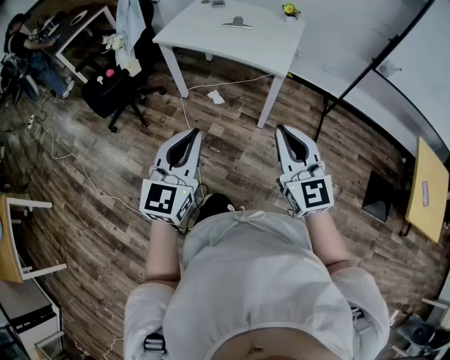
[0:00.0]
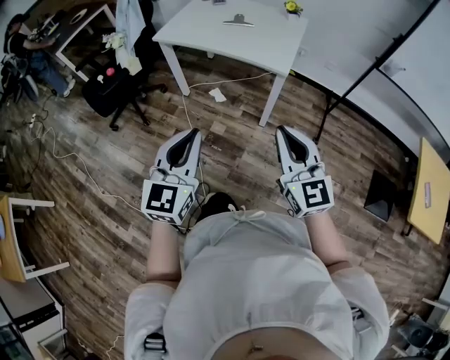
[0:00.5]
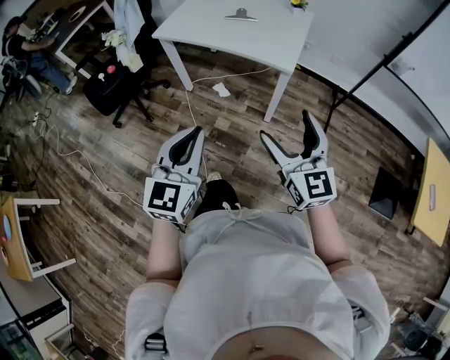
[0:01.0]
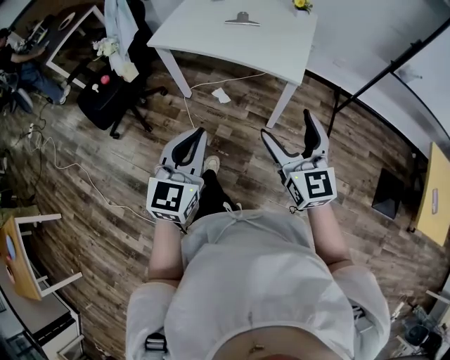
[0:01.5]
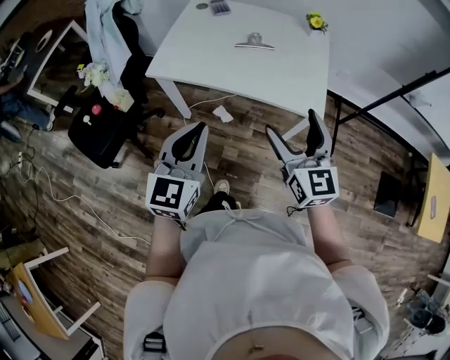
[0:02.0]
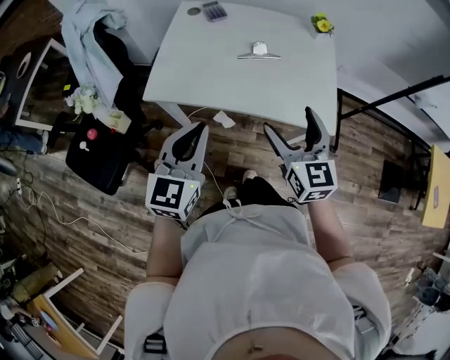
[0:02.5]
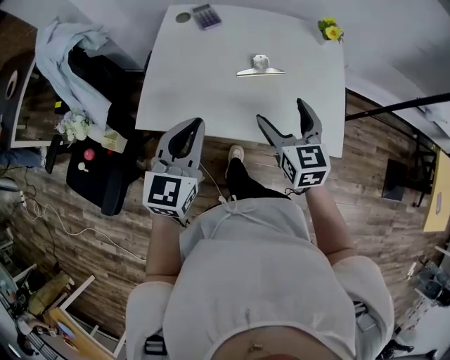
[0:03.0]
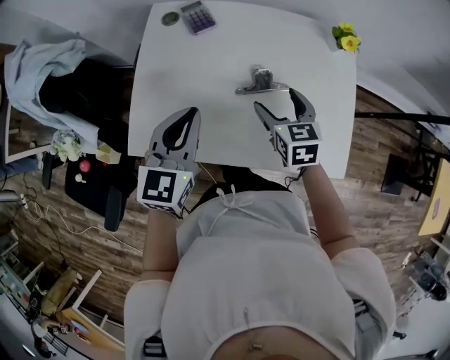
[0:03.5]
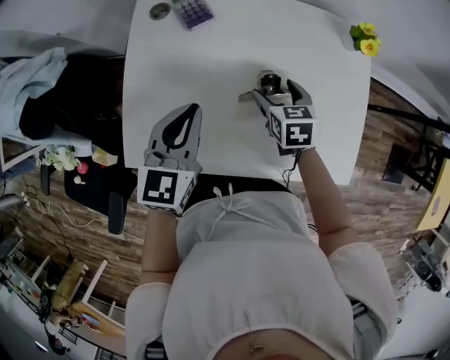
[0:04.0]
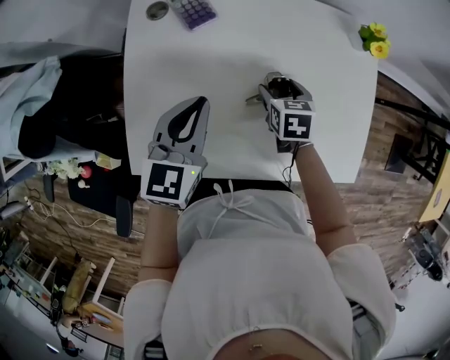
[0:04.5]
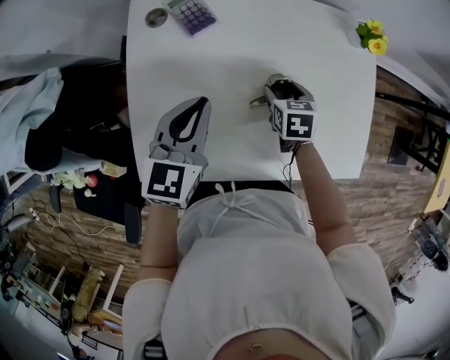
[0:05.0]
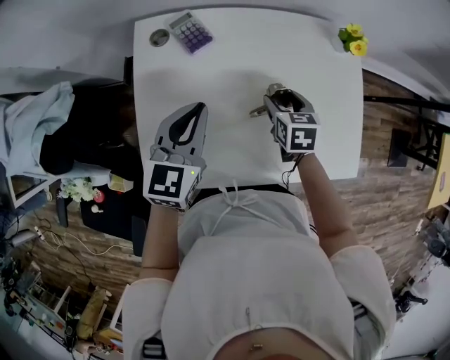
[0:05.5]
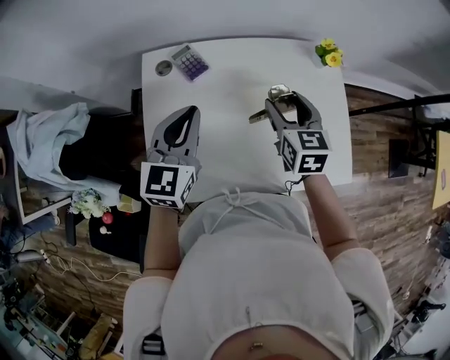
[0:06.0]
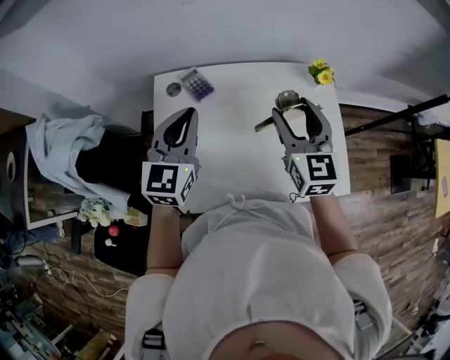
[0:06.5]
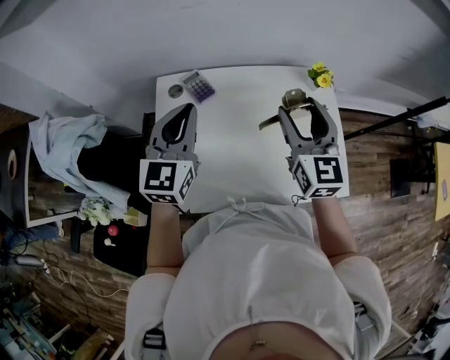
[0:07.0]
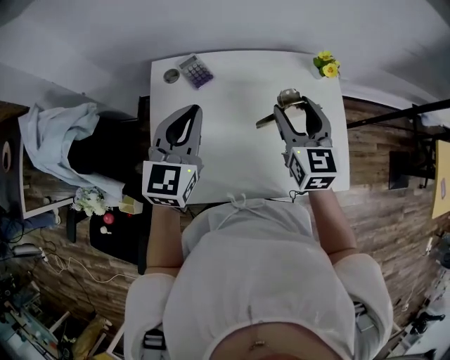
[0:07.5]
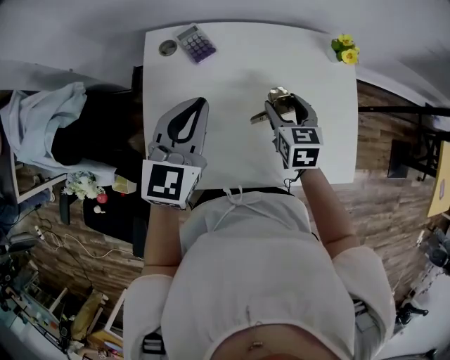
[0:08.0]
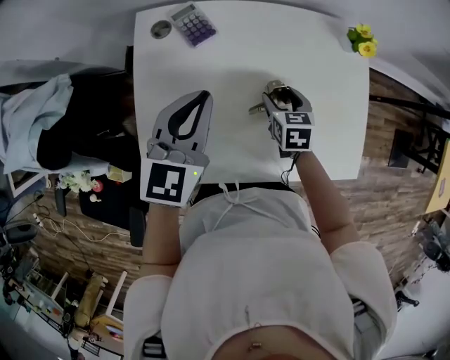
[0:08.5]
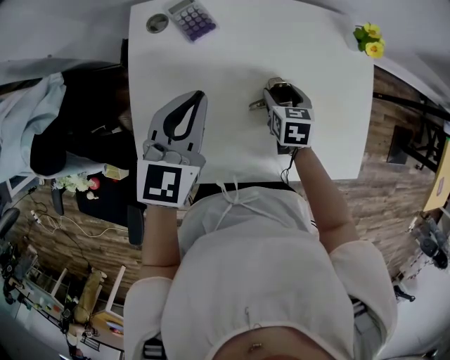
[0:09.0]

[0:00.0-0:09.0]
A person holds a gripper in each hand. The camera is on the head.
0:00.0 to 0:02.0: The two grippers go about 35 cm forward. The right gripper opens.
0:02.0 to 0:04.5: The pair of grippers is taken forward, some 50 cm. The left gripper turns by some 20 degrees, while the right gripper travels downward by about 30 cm, and tips its fingers downward by approximately 50 degrees.
0:04.5 to 0:07.0: The left gripper heads upward, covering some 20 cm, and turns by about 20 degrees. The right gripper heads upward, covering approximately 35 cm, and tilts its fingers roughly 50 degrees upward.
0:07.0 to 0:09.0: The right gripper is displaced downward by some 35 cm, and points its fingers roughly 50 degrees further downward. Meanwhile the left gripper is displaced downward by some 15 cm, and swivels approximately 20 degrees.

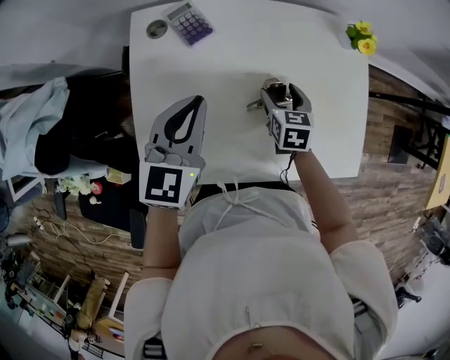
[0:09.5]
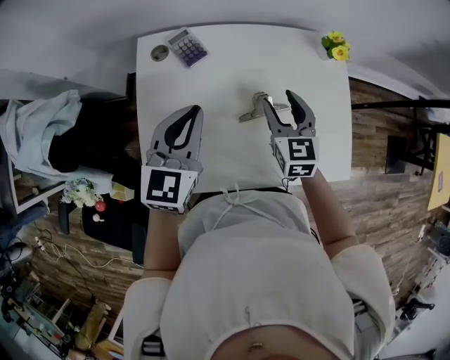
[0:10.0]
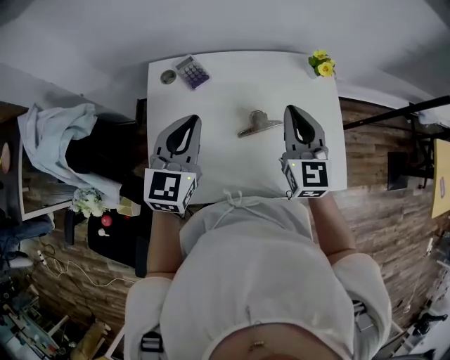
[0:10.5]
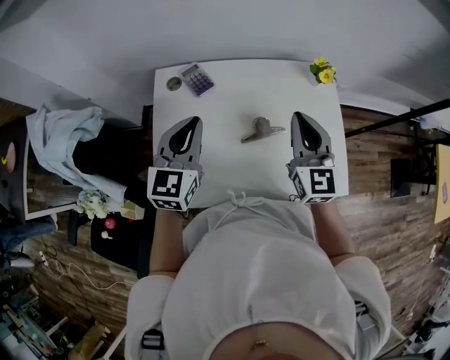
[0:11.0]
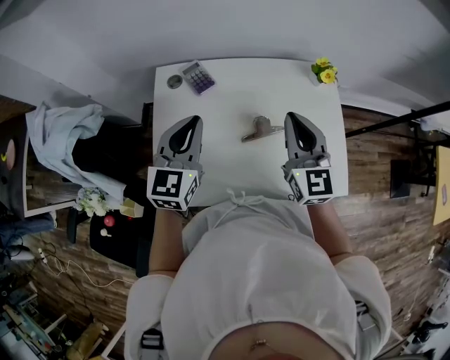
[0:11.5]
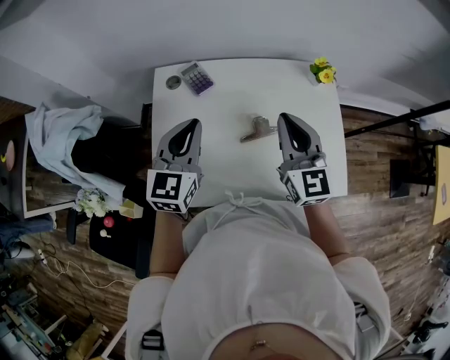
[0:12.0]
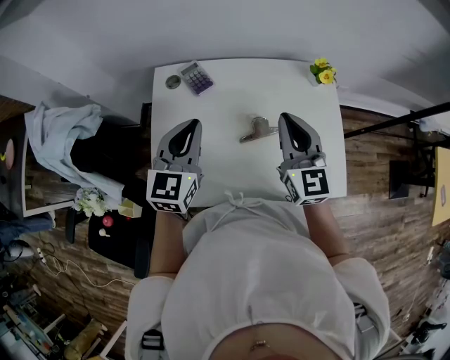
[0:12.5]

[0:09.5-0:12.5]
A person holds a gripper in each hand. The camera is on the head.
0:09.5 to 0:11.0: The right gripper moves upward, approximately 30 cm, tips its fingers upward by approximately 40 degrees, and closes its fingers. Meanwhile the left gripper goes approximately 10 cm upward.
0:11.0 to 0:12.5: The grippers make only small movements.

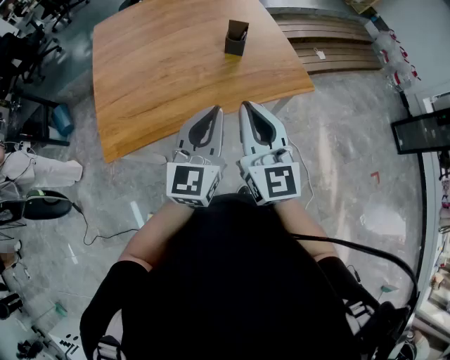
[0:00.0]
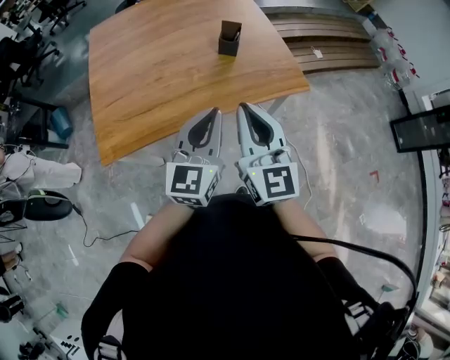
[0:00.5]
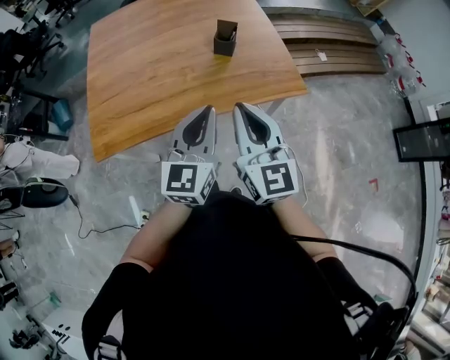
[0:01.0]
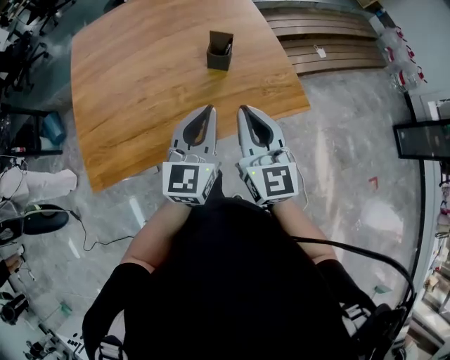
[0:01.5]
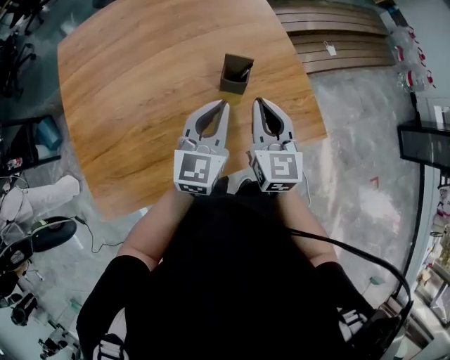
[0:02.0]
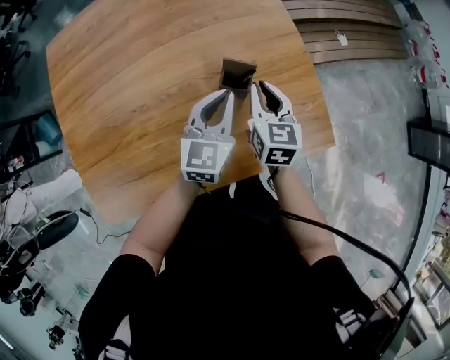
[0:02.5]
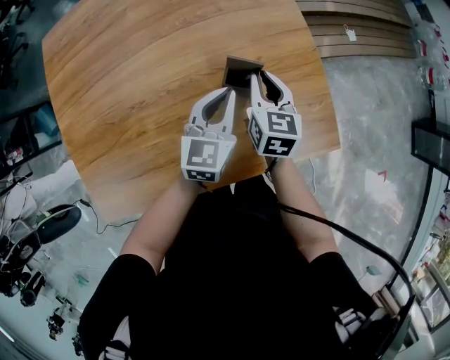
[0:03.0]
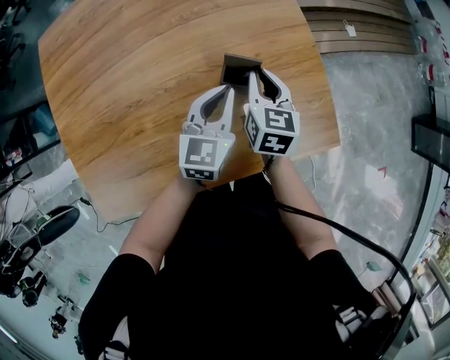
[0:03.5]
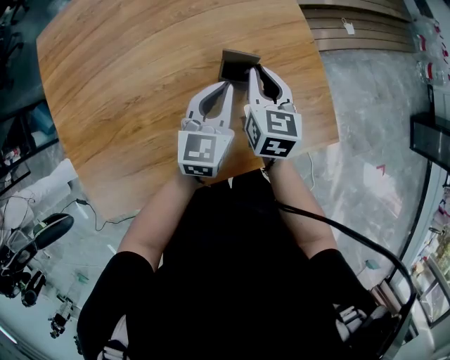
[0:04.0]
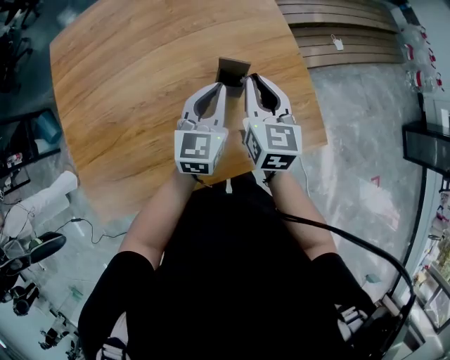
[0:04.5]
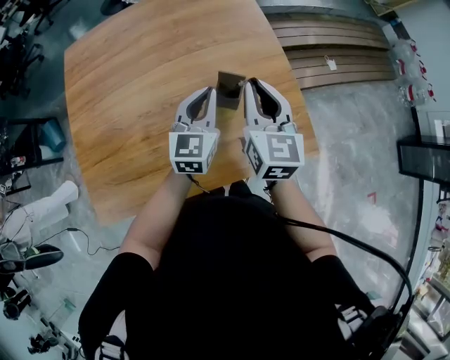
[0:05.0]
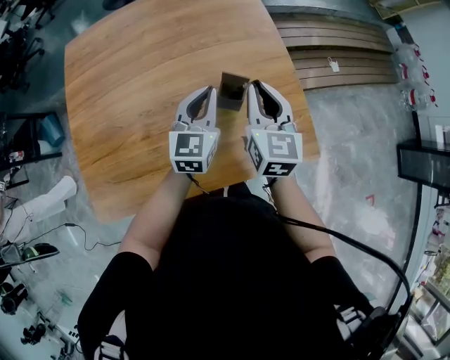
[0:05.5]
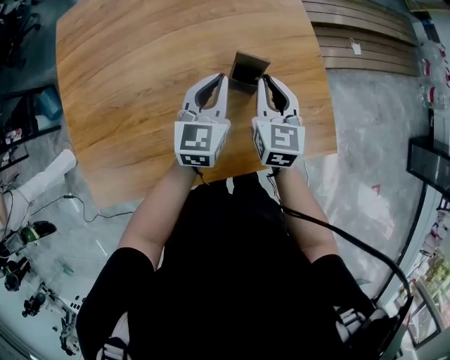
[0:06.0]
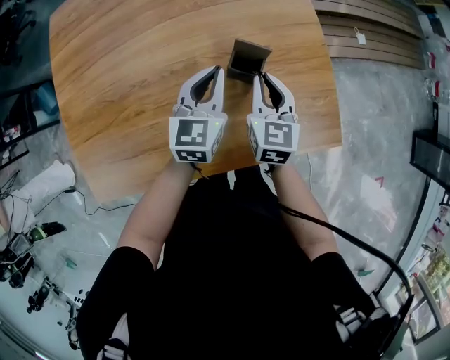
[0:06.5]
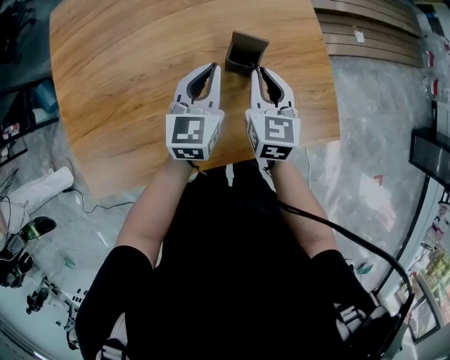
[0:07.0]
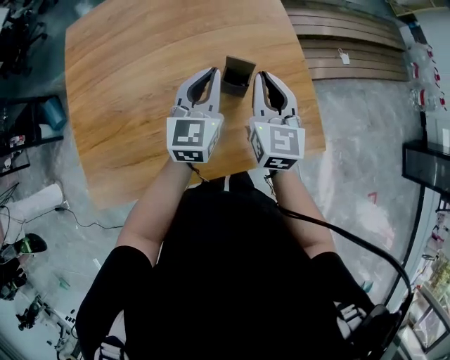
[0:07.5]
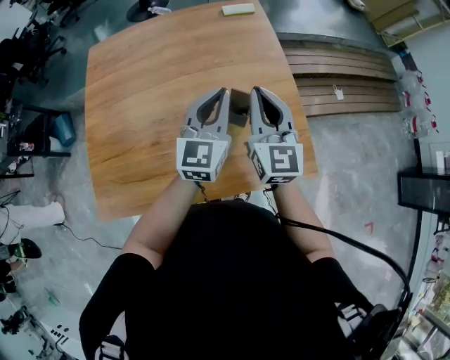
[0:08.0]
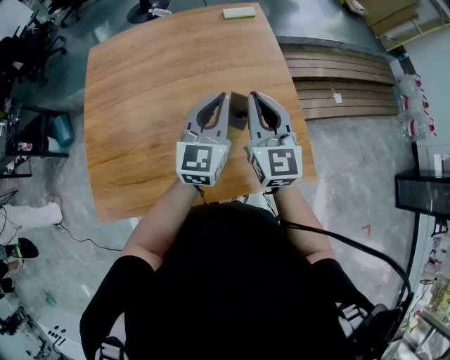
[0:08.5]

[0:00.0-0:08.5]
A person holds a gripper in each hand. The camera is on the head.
0:00.0 to 0:02.0: Both grippers move forward, some 35 cm. The right gripper turns by roughly 20 degrees.
0:02.0 to 0:04.0: The right gripper goes some 15 cm forward and downward. Meanwhile the left gripper heads downward and forward, covering roughly 15 cm.
0:04.0 to 0:06.5: The right gripper goes upward and returns, roughly 20 cm each way. Meanwhile the left gripper moves roughly 10 cm upward and comes back.
0:06.5 to 0:08.5: The two grippers go approximately 20 cm upward. The right gripper rotates roughly 30 degrees.

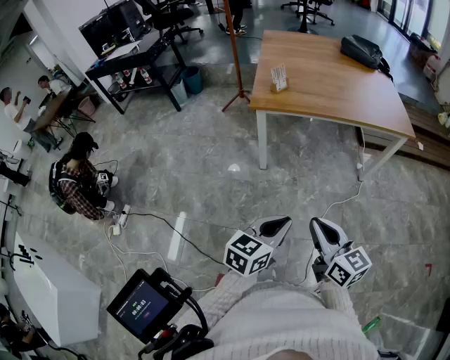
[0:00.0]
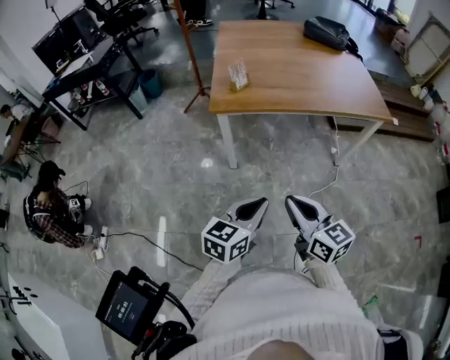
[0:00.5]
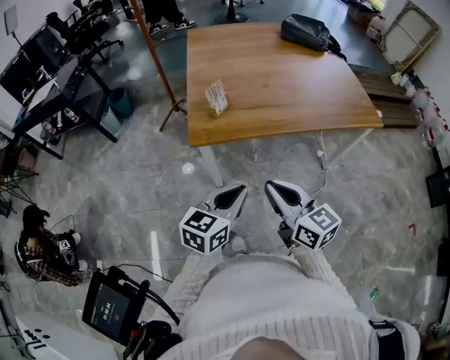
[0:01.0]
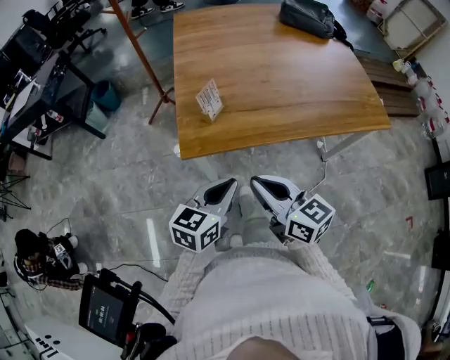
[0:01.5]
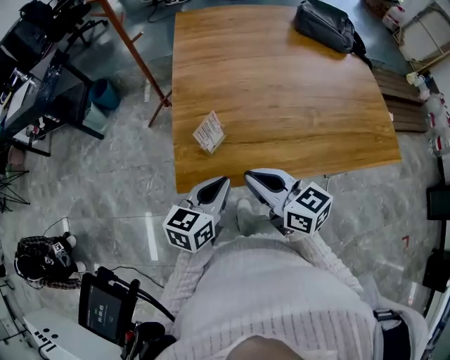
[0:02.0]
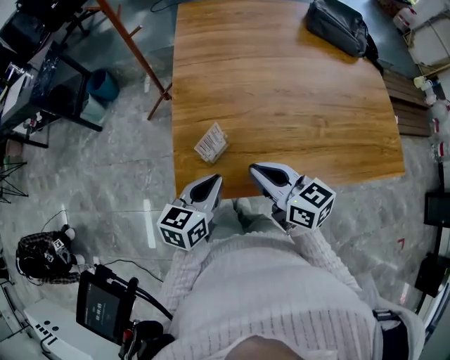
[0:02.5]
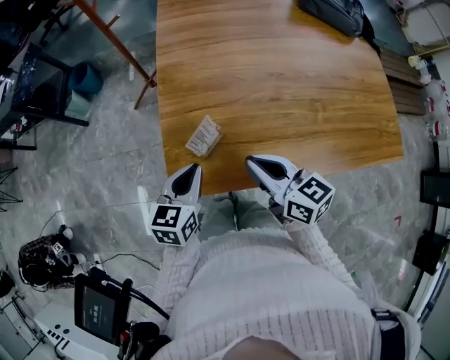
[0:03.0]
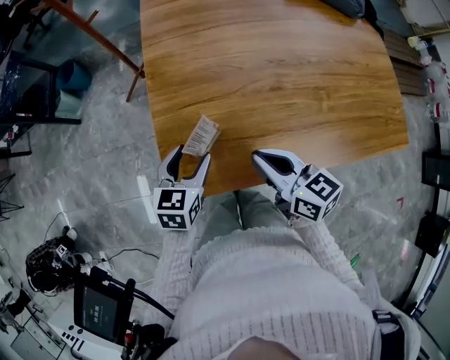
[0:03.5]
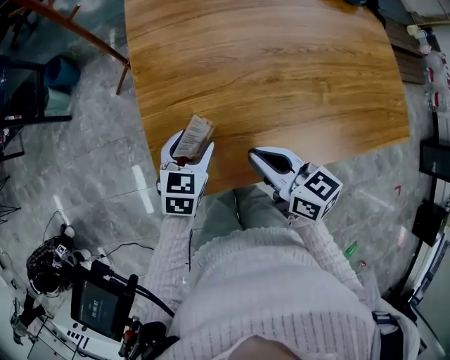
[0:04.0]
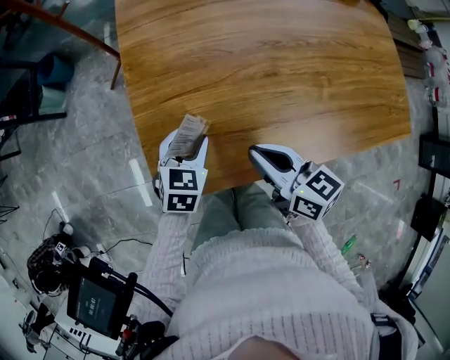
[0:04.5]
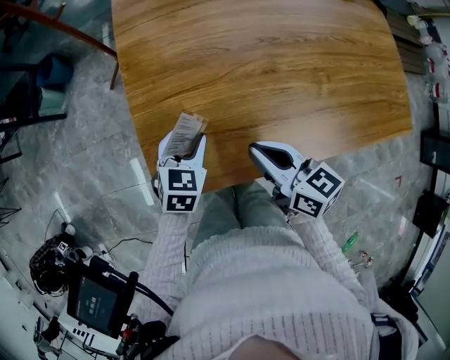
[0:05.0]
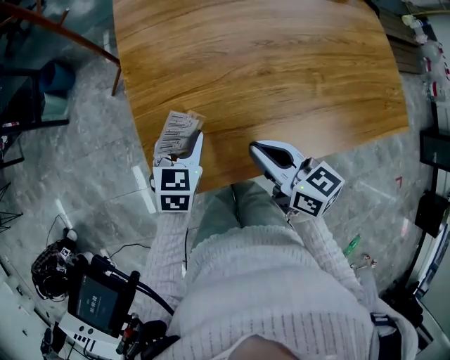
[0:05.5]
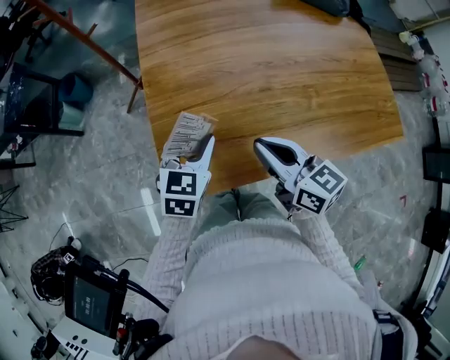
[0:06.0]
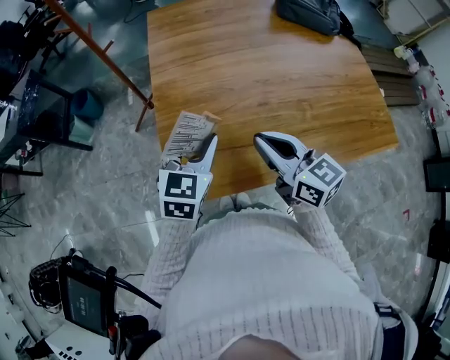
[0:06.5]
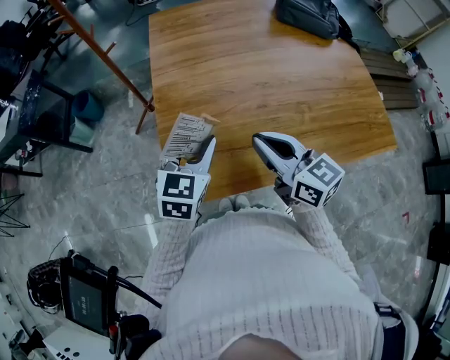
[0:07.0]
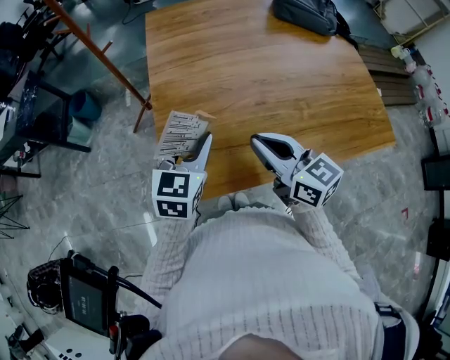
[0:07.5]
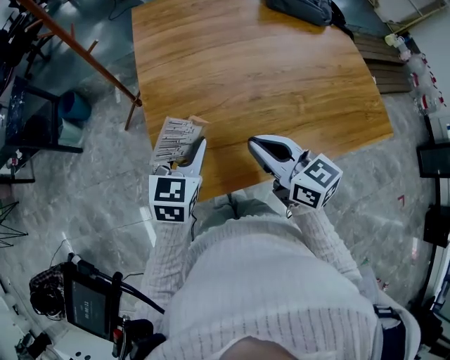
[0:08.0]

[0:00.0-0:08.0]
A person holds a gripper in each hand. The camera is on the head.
0:00.0 to 0:02.0: Both grippers are carried forward, approximately 60 cm.
0:02.0 to 0:04.0: The left gripper is displaced forward and downward by roughly 20 cm, changes its angle by some 30 degrees, and opens, while the right gripper moves forward and downward, approximately 10 cm.
0:04.0 to 0:06.0: Both grippers travel together upward, roughly 10 cm.
